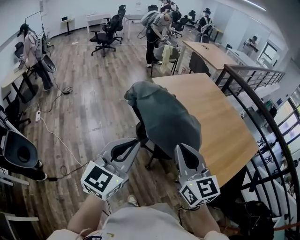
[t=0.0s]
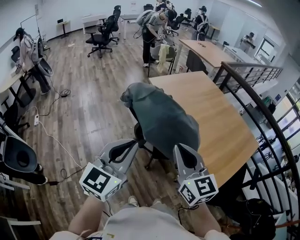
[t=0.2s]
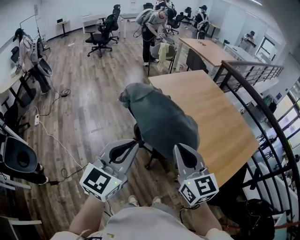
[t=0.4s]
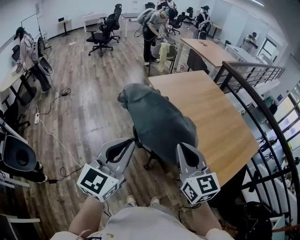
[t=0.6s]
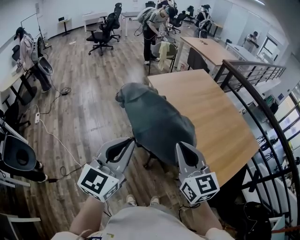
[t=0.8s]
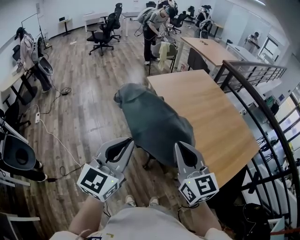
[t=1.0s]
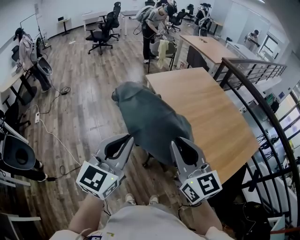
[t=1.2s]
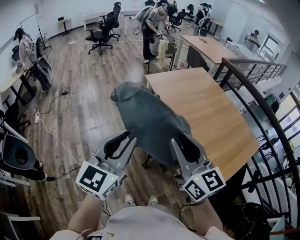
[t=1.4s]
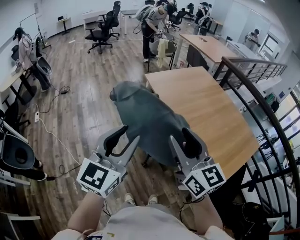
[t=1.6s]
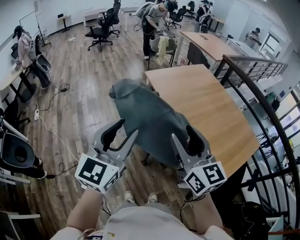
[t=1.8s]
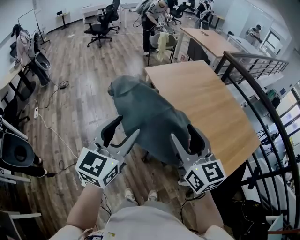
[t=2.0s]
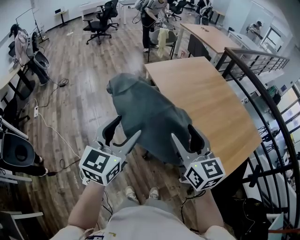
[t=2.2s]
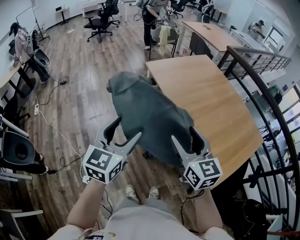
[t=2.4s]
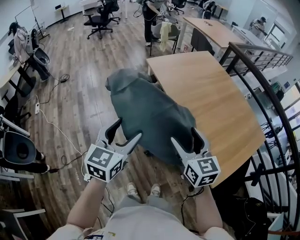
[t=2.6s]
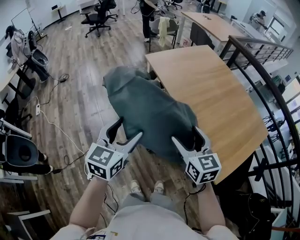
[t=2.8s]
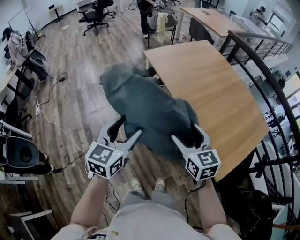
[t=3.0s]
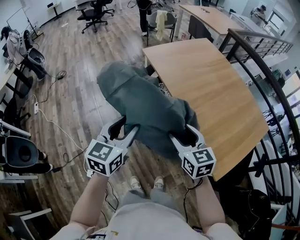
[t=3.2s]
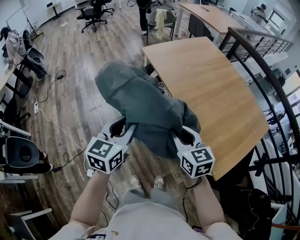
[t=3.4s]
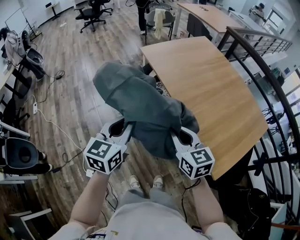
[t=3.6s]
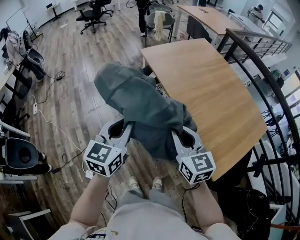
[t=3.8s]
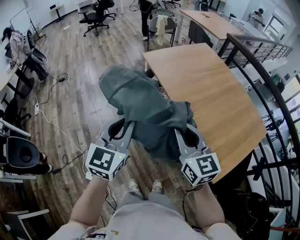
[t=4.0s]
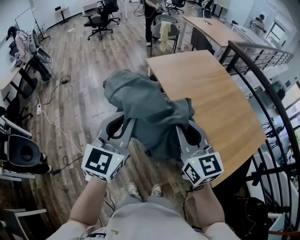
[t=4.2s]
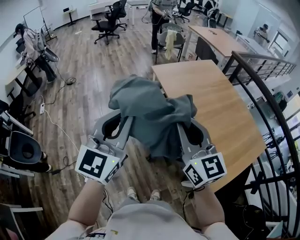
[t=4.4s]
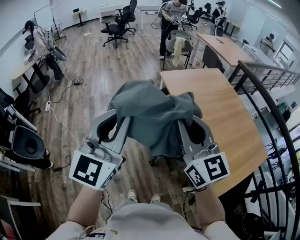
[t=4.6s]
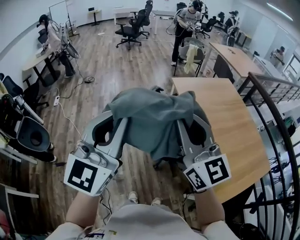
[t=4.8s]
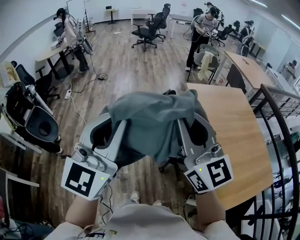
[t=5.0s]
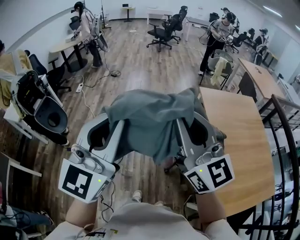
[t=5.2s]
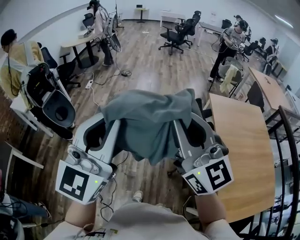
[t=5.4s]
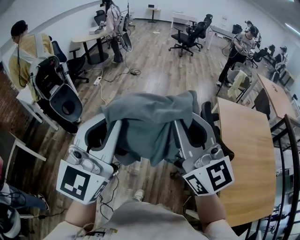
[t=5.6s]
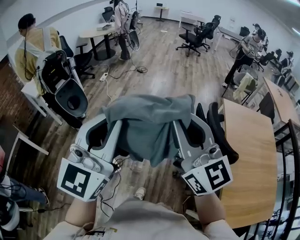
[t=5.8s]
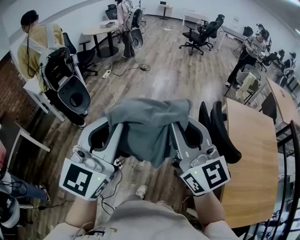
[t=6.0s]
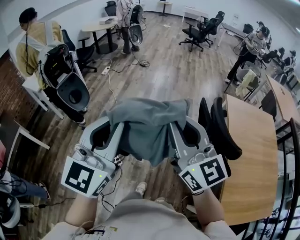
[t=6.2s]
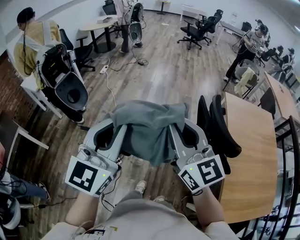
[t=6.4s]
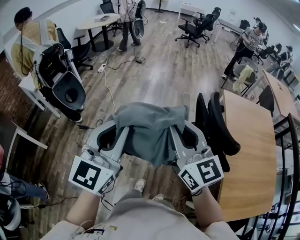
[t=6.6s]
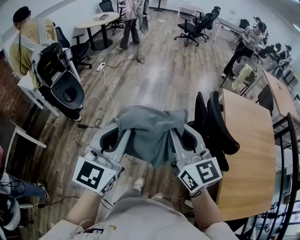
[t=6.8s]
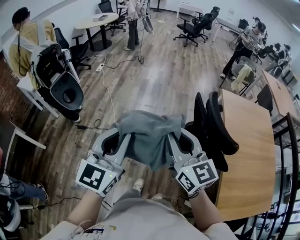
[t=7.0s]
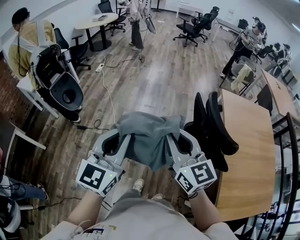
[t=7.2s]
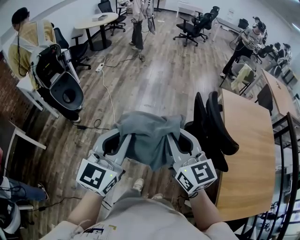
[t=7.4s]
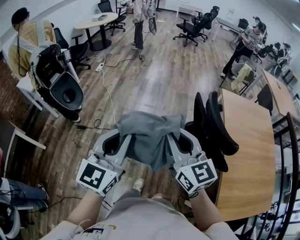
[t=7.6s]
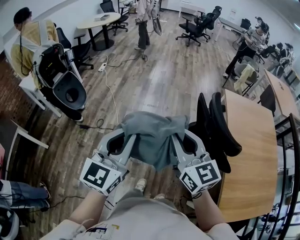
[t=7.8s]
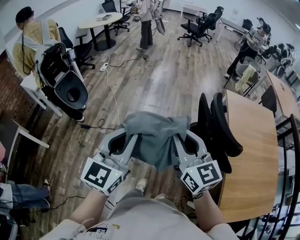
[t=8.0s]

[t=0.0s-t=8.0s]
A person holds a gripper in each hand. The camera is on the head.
t=0.0s to t=1.6s: Both grippers move to the right and forward, some 10 cm. The left gripper opens up, while the right gripper opens.
t=1.6s to t=3.2s: The left gripper is displaced downward and forward by some 20 cm, turns by about 20 degrees, and opens and closes again. The right gripper is displaced downward by roughly 20 cm, and rotates some 30 degrees.
t=3.2s to t=4.8s: The right gripper is displaced upward and to the left by approximately 30 cm, tips its fingers upward by roughly 40 degrees, and closes its fingers. The left gripper goes approximately 30 cm upward, backward and to the left, changes its angle by about 40 degrees, and closes up.
t=4.8s to t=6.4s: The left gripper shifts by some 20 cm, and swivels roughly 30 degrees, while the right gripper ends up roughly 25 cm from where it was, and rotates roughly 30 degrees.
t=6.4s to t=8.0s: Both grippers move downward, approximately 5 cm.

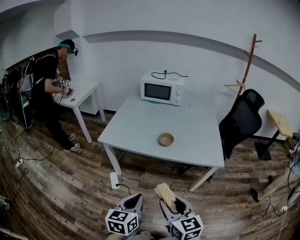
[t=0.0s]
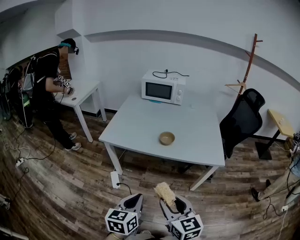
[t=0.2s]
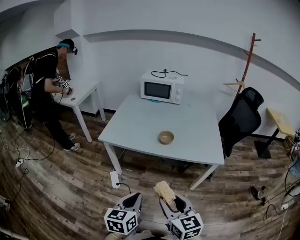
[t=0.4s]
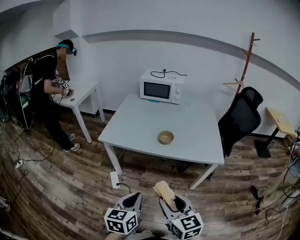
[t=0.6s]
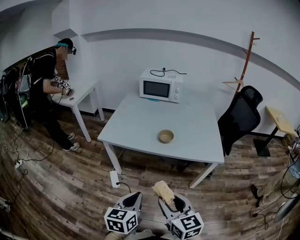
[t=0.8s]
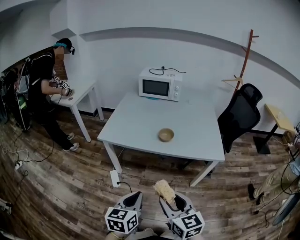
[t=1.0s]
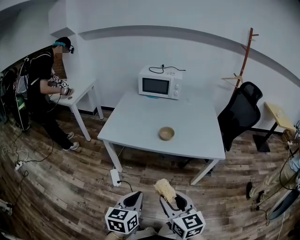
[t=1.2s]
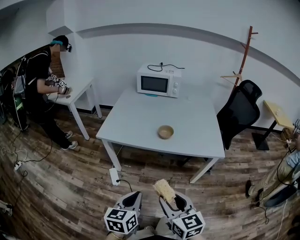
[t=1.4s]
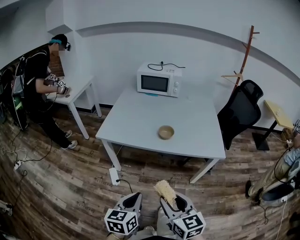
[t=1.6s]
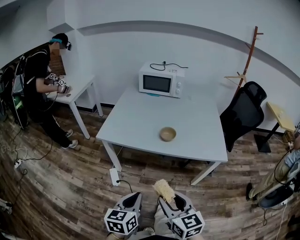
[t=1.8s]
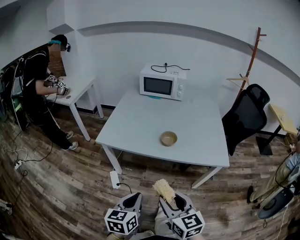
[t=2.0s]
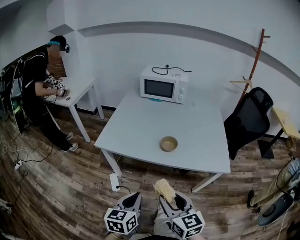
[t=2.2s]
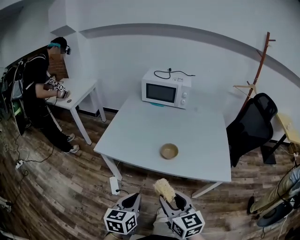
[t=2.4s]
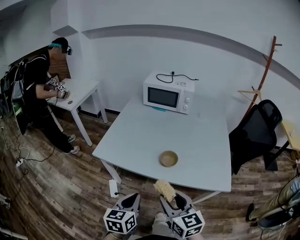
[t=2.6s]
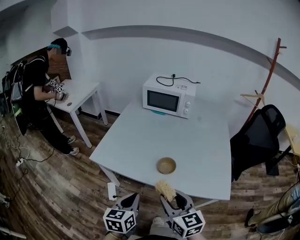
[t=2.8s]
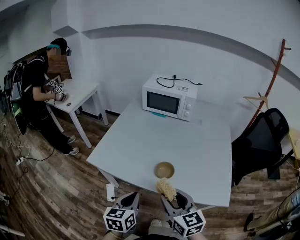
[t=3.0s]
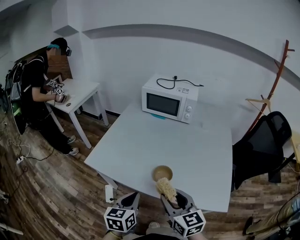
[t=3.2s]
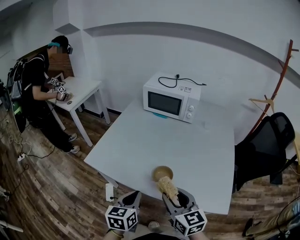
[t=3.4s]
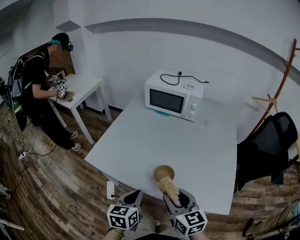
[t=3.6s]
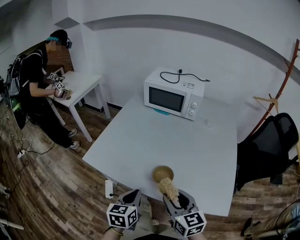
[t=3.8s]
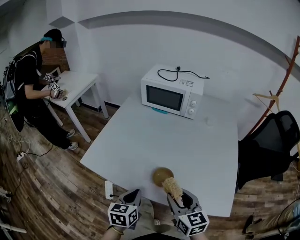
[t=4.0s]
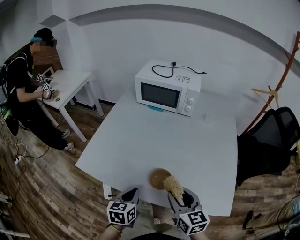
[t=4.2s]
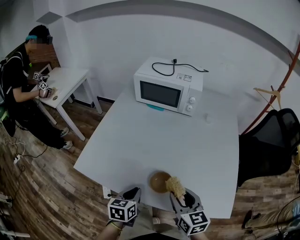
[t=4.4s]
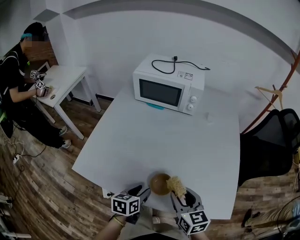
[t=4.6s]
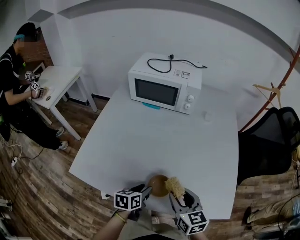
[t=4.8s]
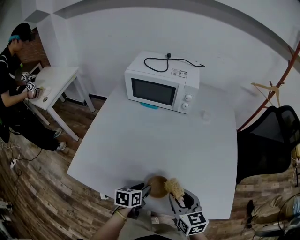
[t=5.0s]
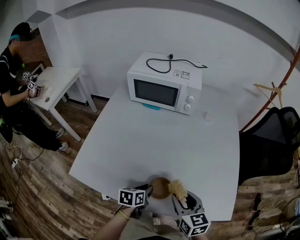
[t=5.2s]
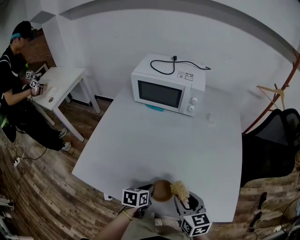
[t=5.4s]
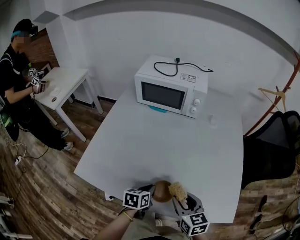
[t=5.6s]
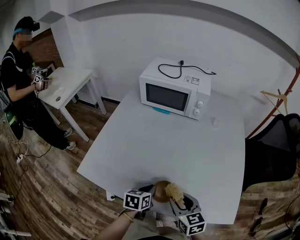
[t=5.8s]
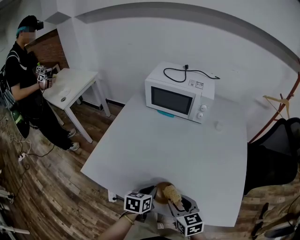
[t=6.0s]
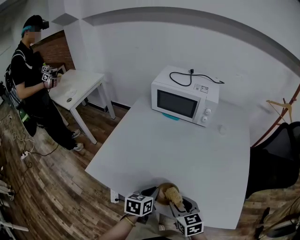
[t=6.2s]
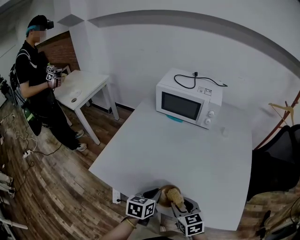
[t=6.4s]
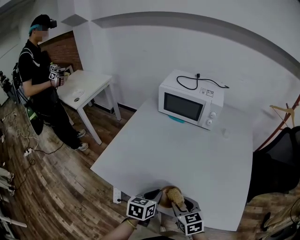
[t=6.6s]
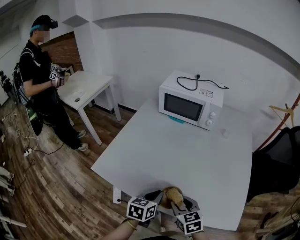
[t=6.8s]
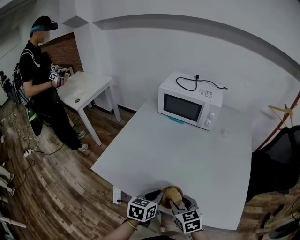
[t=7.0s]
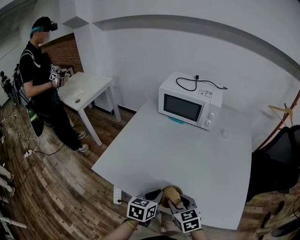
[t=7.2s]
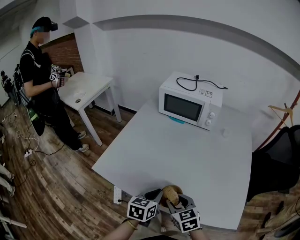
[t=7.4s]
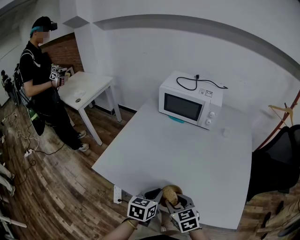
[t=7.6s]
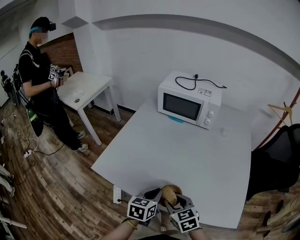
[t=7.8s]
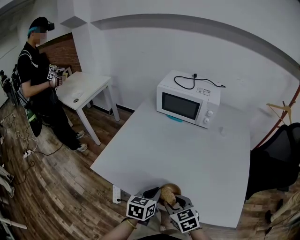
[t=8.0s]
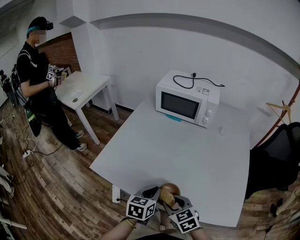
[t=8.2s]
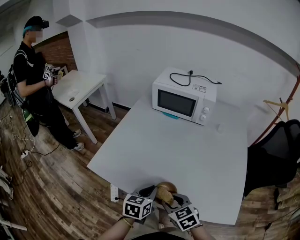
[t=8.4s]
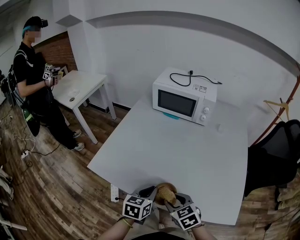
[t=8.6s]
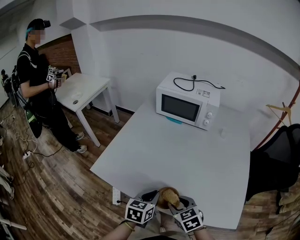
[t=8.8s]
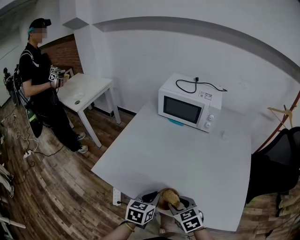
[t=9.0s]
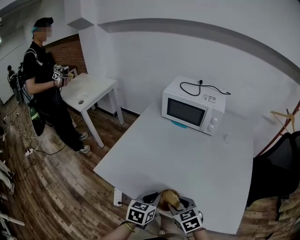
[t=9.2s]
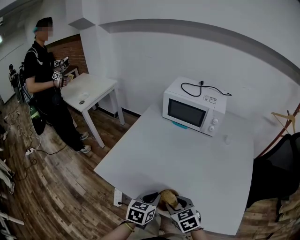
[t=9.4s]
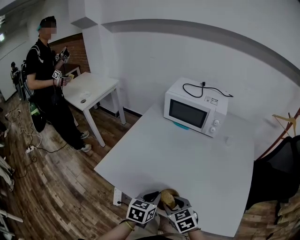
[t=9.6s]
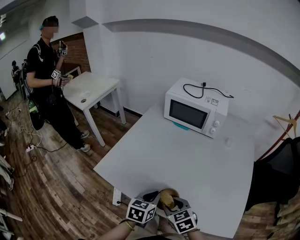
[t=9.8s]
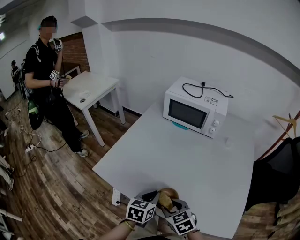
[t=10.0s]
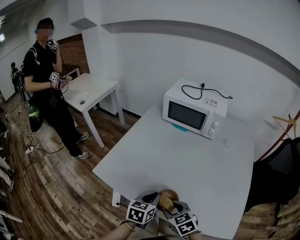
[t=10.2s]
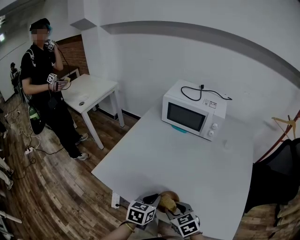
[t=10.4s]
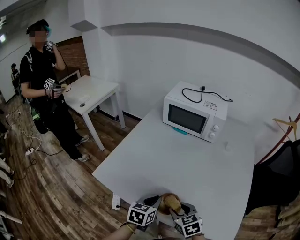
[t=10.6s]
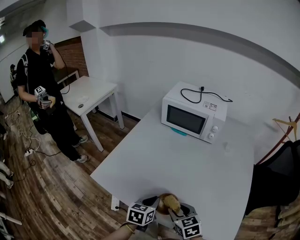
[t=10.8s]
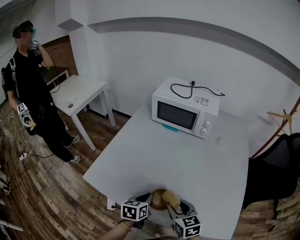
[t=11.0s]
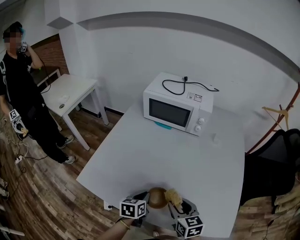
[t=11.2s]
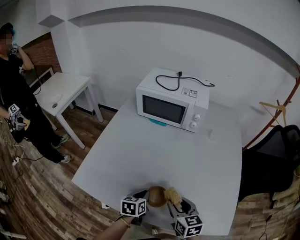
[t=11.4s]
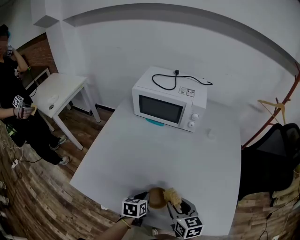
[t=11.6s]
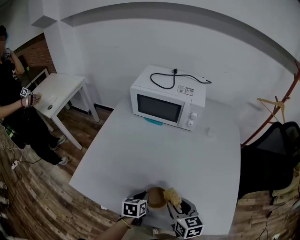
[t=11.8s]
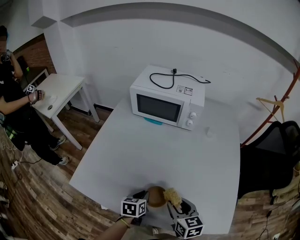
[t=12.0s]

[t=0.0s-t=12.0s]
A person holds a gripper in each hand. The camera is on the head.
t=0.0s to t=1.6s: The grippers move only a little.
t=1.6s to t=3.0s: Both grippers travel together forward, some 25 cm.
t=3.0s to t=4.4s: The right gripper goes approximately 15 cm forward, downward and to the right, while the left gripper goes approximately 15 cm forward and downward.
t=4.4s to t=6.0s: The left gripper heads forward, covering roughly 5 cm, and opens and closes again. Meanwhile the right gripper goes roughly 5 cm downward.
t=6.0s to t=7.6s: The right gripper goes some 5 cm to the left. The left gripper is displaced upward by roughly 5 cm.
t=7.6s to t=10.4s: The grippers make only small movements.
t=10.4s to t=12.0s: The right gripper is displaced to the right and forward by approximately 10 cm, and rotates approximately 30 degrees; the left gripper moves downward and forward, roughly 10 cm.

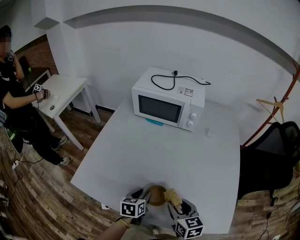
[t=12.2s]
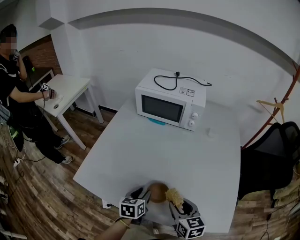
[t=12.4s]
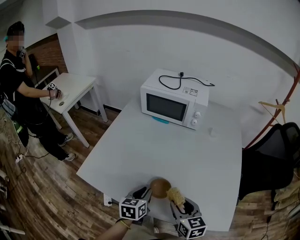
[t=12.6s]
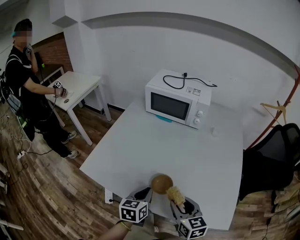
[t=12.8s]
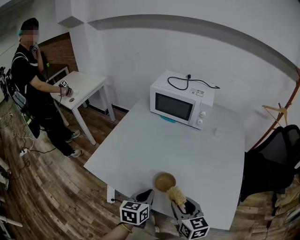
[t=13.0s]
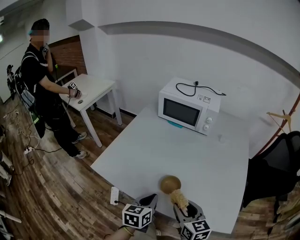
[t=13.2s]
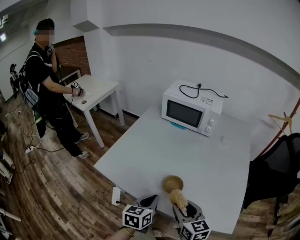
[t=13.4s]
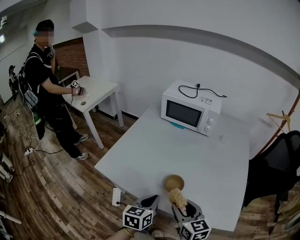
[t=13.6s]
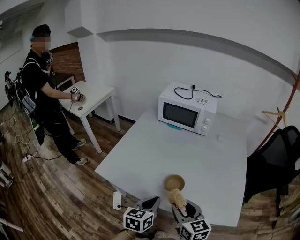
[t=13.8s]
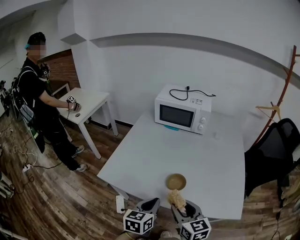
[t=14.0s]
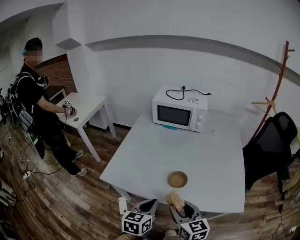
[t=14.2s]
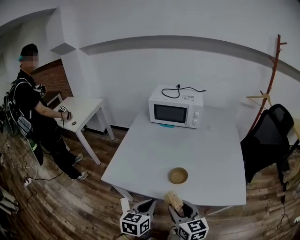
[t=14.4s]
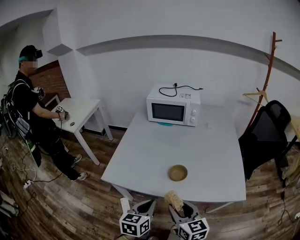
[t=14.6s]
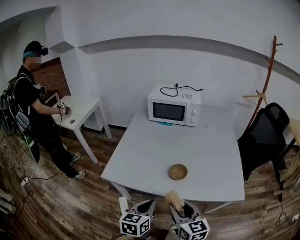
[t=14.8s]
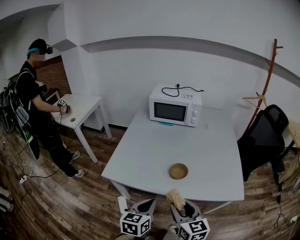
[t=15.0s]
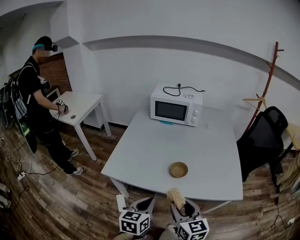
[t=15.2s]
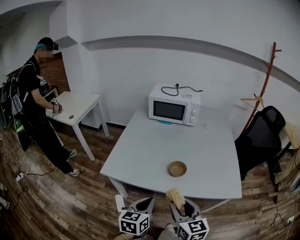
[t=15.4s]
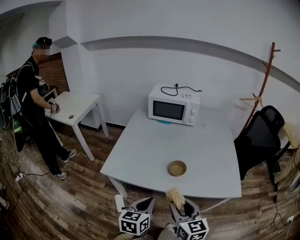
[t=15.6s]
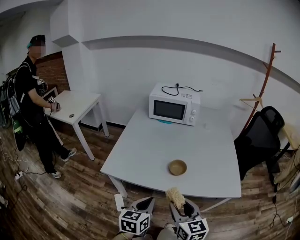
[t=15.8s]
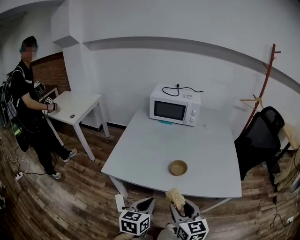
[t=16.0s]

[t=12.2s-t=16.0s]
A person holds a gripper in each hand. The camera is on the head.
t=12.2s to t=13.4s: The left gripper travels backward and upward by roughly 15 cm, and closes its fingers, while the right gripper shifts some 10 cm backward, upward and to the left.
t=13.4s to t=14.8s: Both grippers travel together backward and to the left, some 15 cm.
t=14.8s to t=16.0s: The grippers make only small movements.
